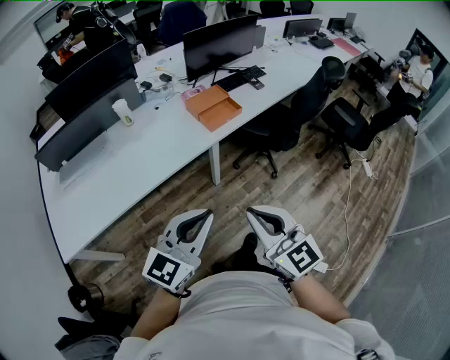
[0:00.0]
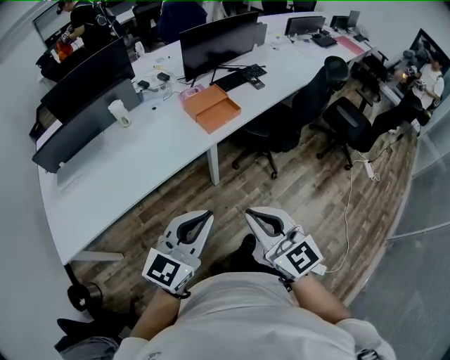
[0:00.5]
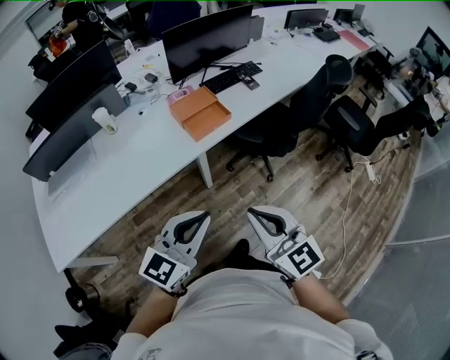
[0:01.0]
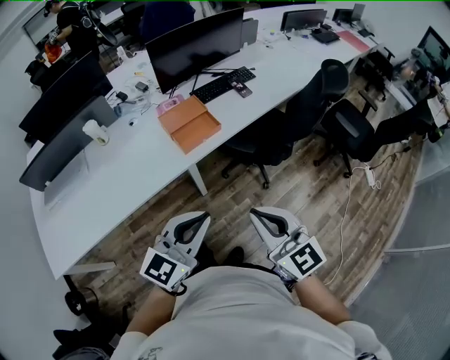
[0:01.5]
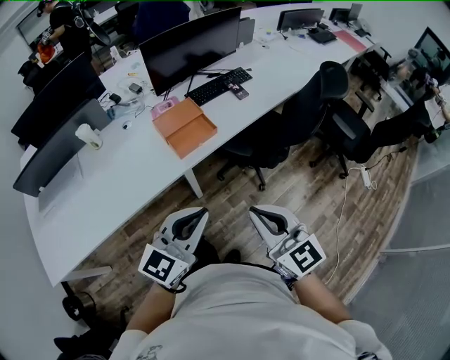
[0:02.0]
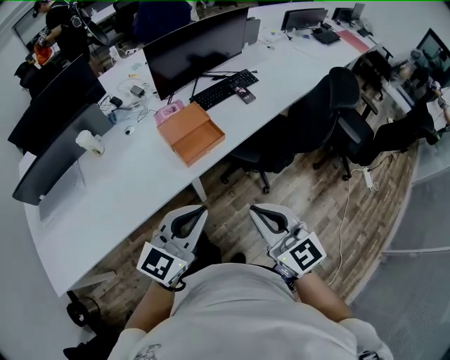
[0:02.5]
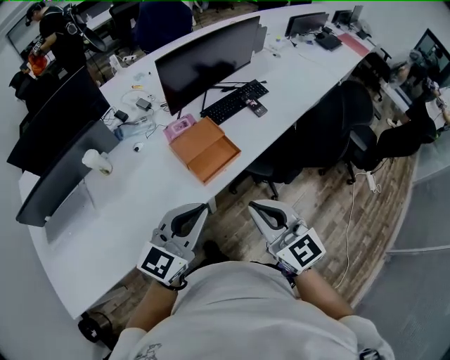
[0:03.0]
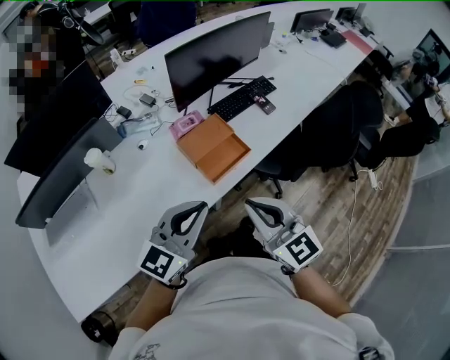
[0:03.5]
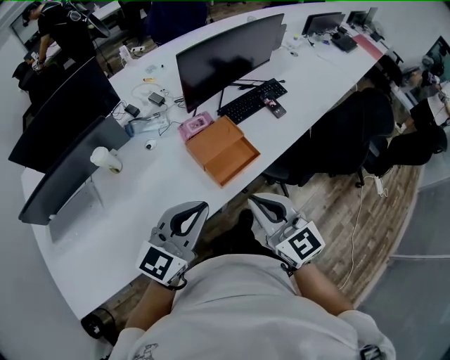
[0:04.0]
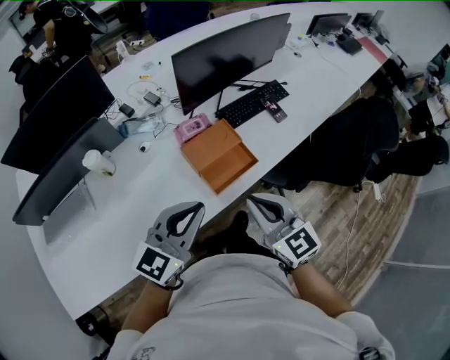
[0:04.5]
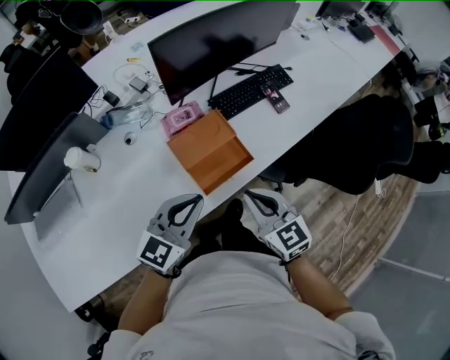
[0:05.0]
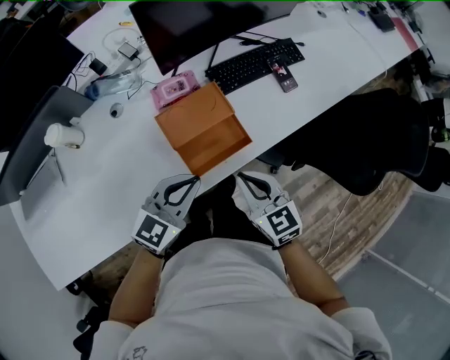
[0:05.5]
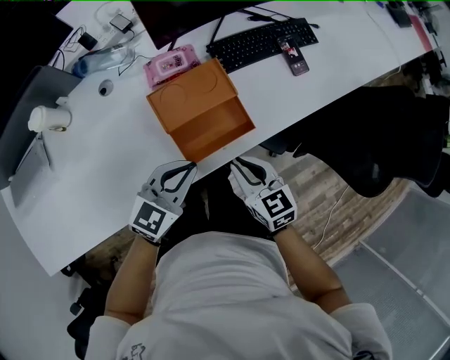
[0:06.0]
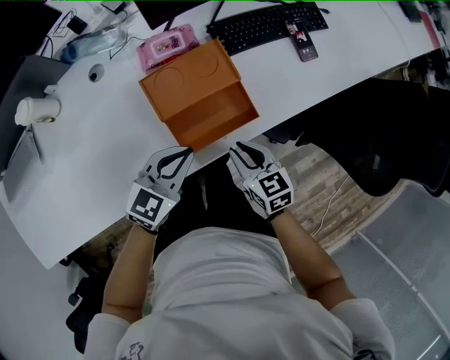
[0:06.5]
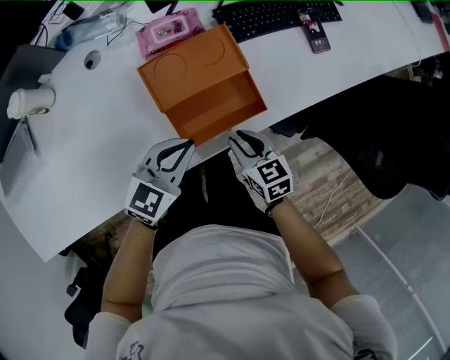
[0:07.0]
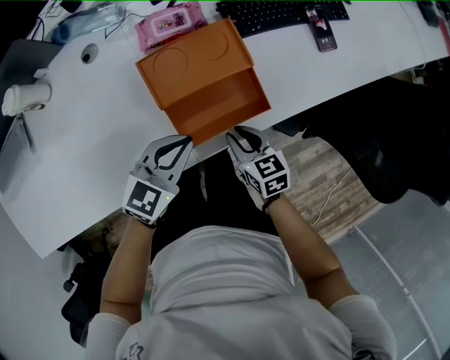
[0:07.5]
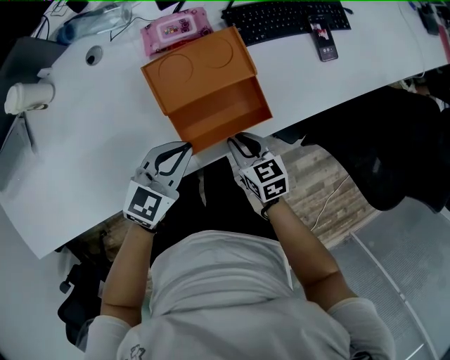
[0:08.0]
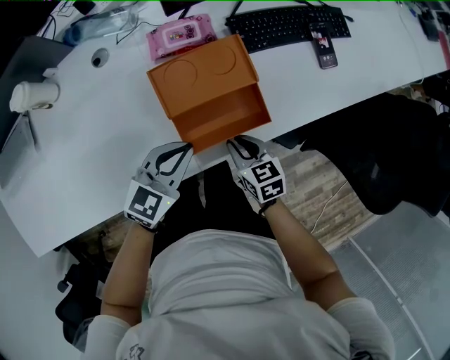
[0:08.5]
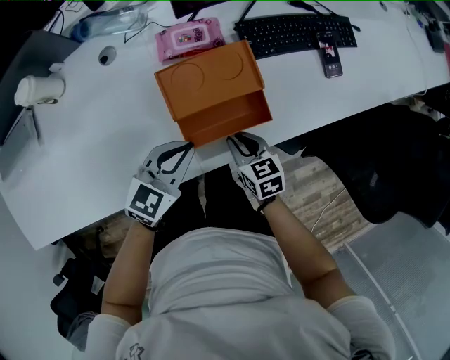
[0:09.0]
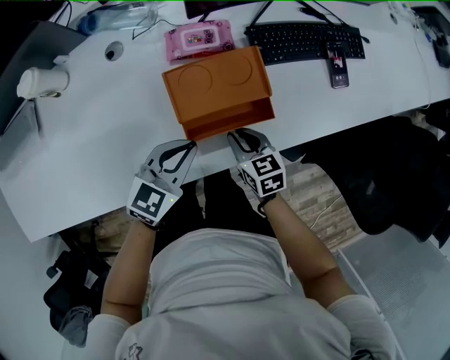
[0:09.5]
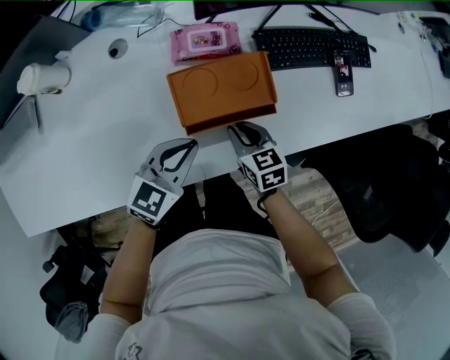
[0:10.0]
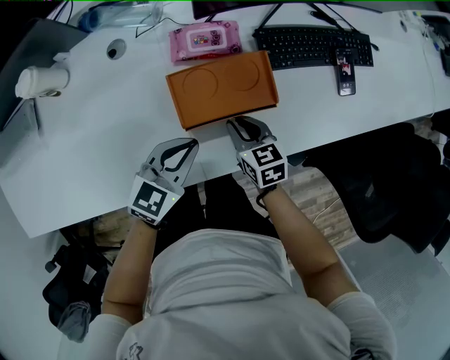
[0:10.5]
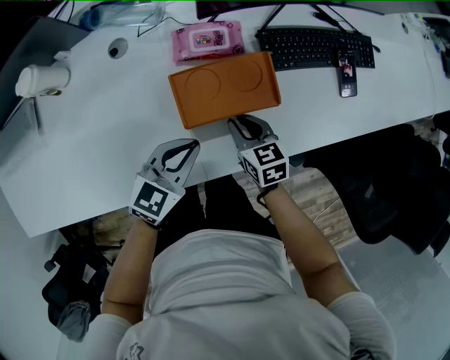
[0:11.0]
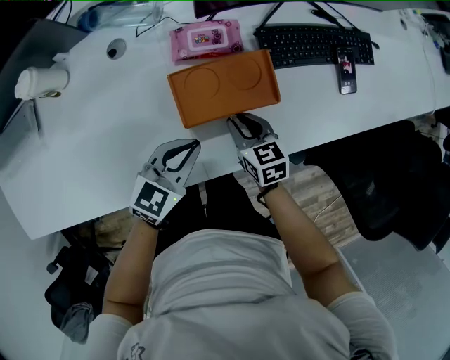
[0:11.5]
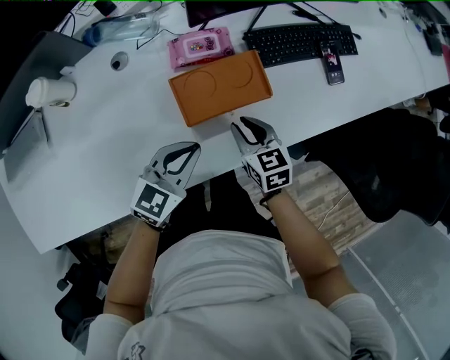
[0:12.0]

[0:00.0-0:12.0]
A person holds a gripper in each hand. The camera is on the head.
0:00.0 to 0:02.0: Both grippers travel together forward and to the right, some 30 cm.
0:02.0 to 0:04.0: The right gripper travels forward and to the left by about 30 cm, while the left gripper shifts about 30 cm to the left and forward.
0:04.0 to 0:06.0: The two grippers go some 30 cm downward and forward. The right gripper swivels roughly 30 degrees. Meanwhile the left gripper turns by some 20 degrees.
0:06.0 to 0:08.0: The left gripper heads downward, covering roughly 10 cm; the right gripper travels downward by about 15 cm.
0:08.0 to 0:10.0: The right gripper is displaced forward by approximately 10 cm. The left gripper ends up about 5 cm from where it was.
0:10.0 to 0:12.0: The right gripper shifts some 5 cm upward.

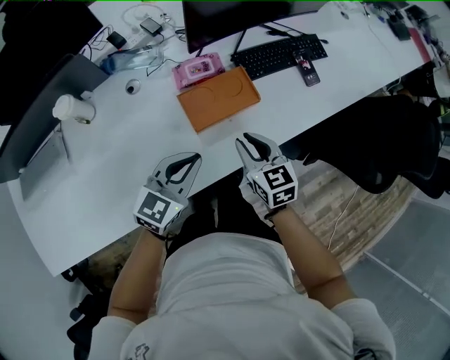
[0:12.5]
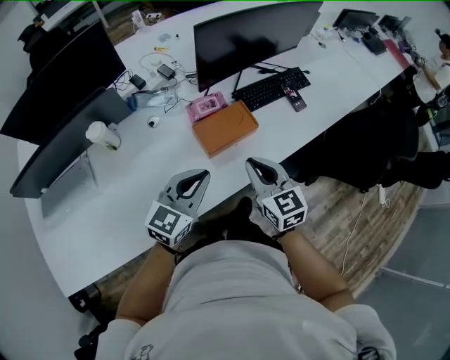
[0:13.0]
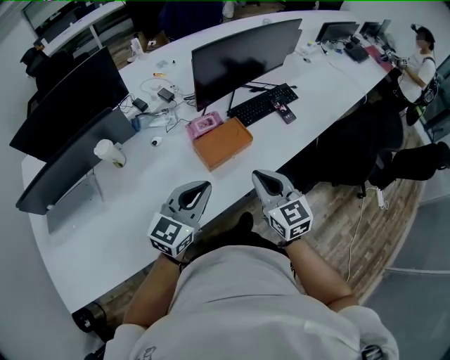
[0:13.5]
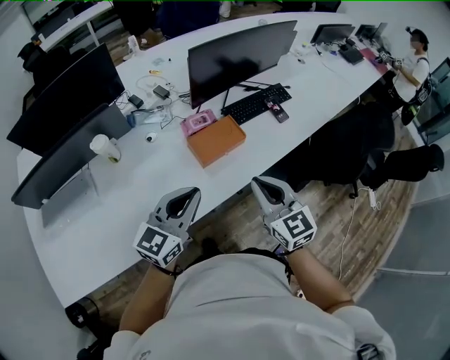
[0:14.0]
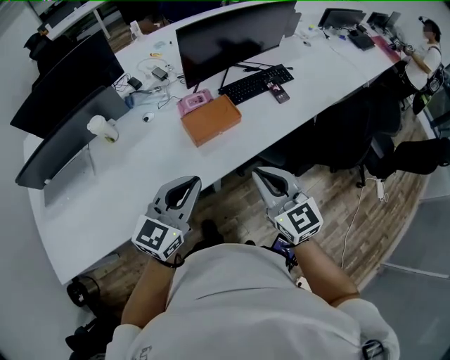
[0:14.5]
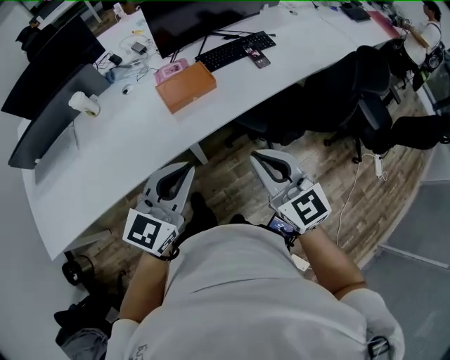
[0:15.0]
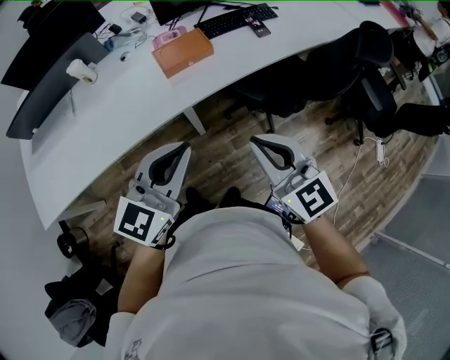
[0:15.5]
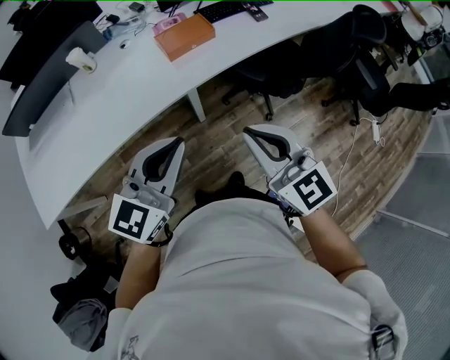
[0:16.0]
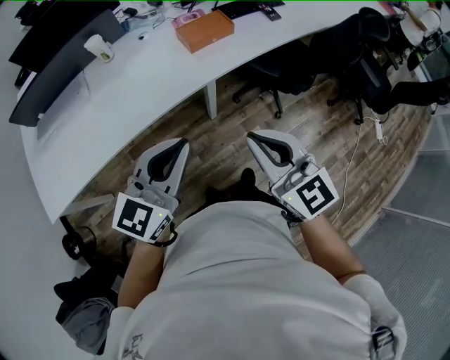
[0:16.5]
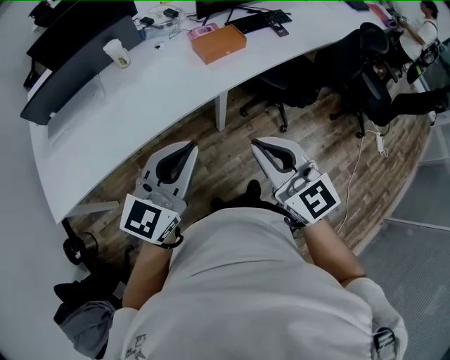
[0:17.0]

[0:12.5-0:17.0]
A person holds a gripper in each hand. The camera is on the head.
0:12.5 to 0:14.5: The two grippers go approximately 30 cm upward and backward. The right gripper turns by about 20 degrees, and closes up.
0:14.5 to 0:17.0: The grippers both shift backward by roughly 30 cm.
